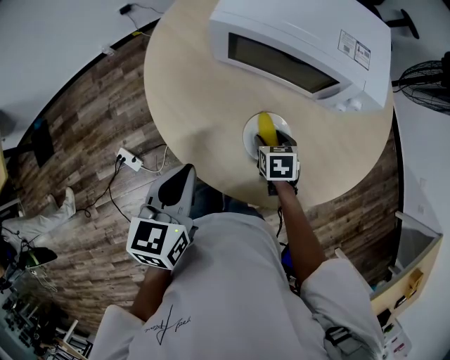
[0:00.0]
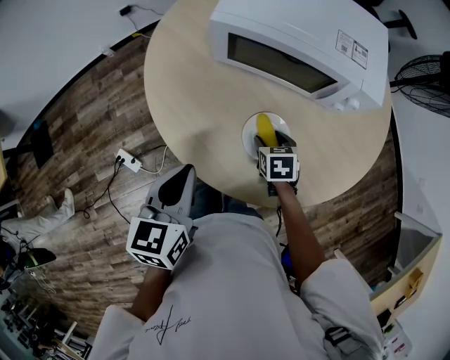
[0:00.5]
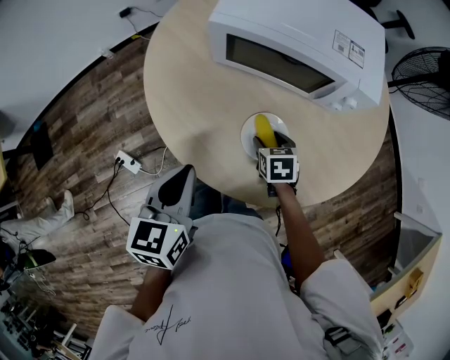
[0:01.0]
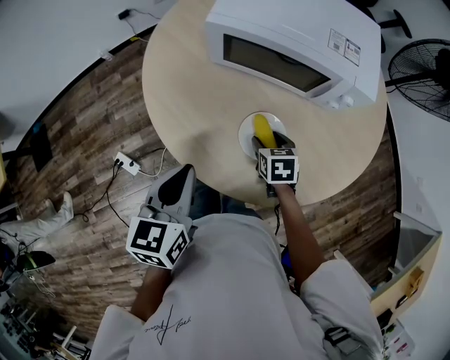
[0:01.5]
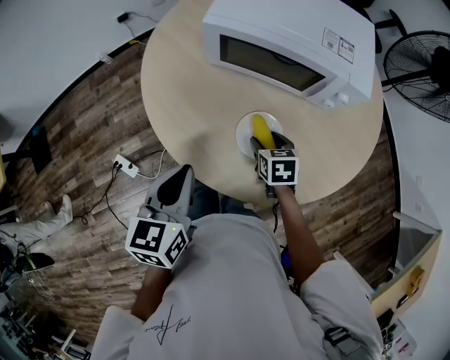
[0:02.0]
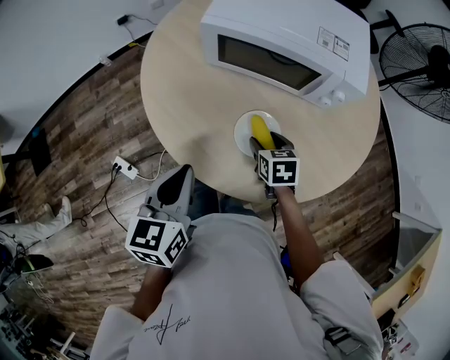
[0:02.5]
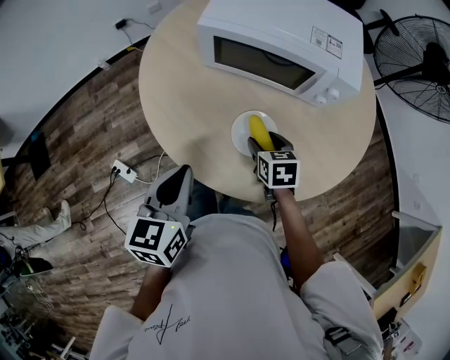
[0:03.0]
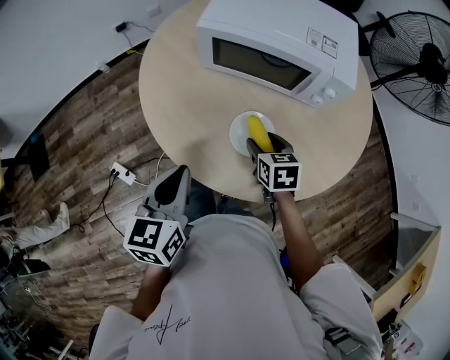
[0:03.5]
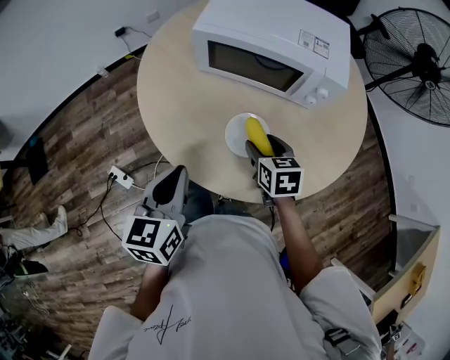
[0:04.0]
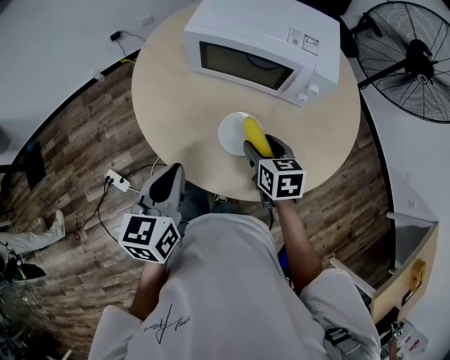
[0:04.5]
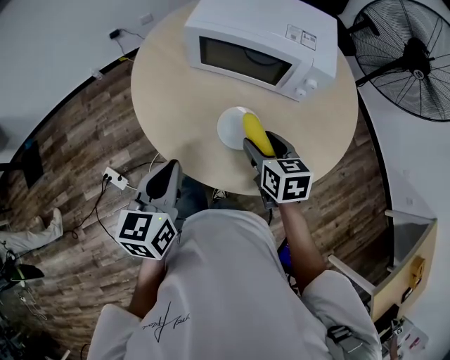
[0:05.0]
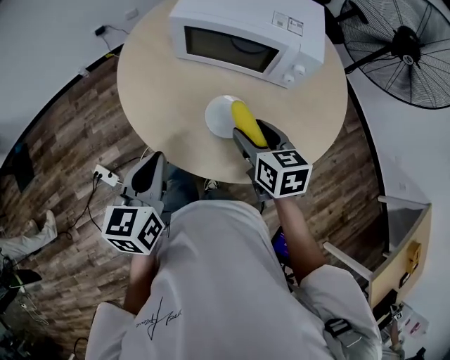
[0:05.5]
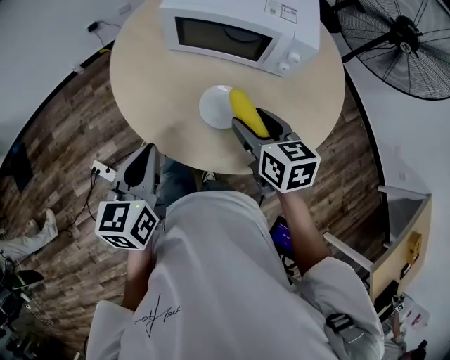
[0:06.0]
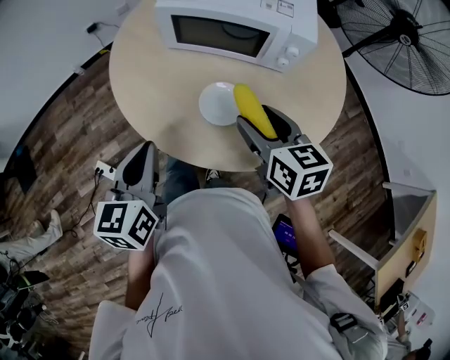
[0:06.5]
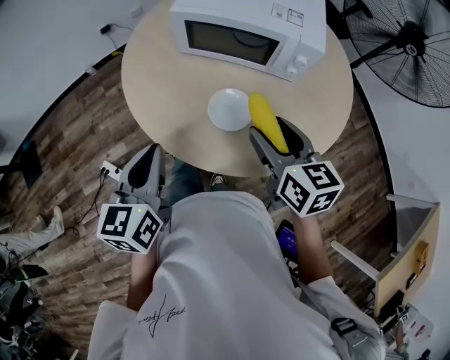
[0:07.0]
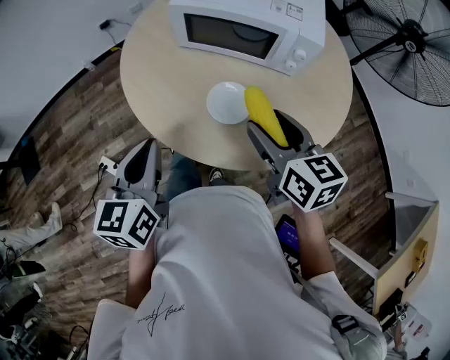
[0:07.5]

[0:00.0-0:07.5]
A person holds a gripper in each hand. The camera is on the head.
0:00.0 to 0:02.0: There are only small adjustments of the grippers.
0:02.0 to 0:04.0: The right gripper travels upward by approximately 10 cm.
0:04.0 to 0:05.5: The right gripper travels upward by about 10 cm.
0:05.5 to 0:07.5: The right gripper goes some 5 cm upward.

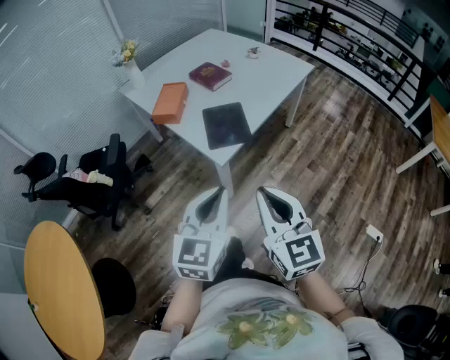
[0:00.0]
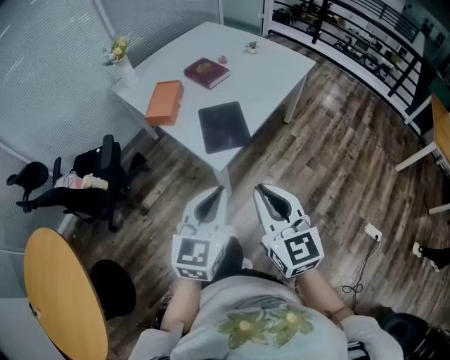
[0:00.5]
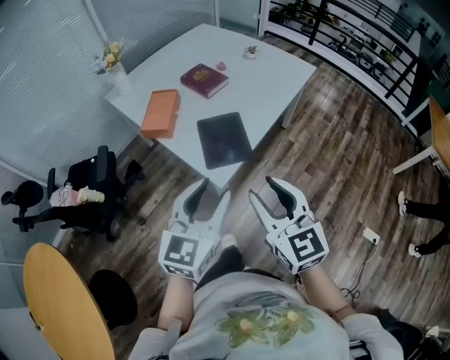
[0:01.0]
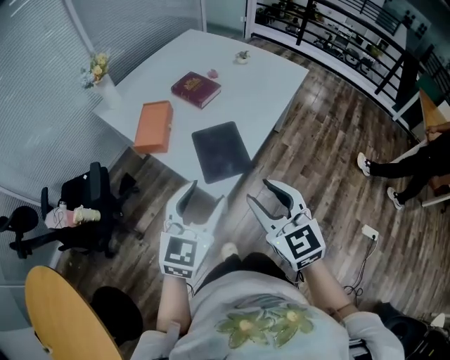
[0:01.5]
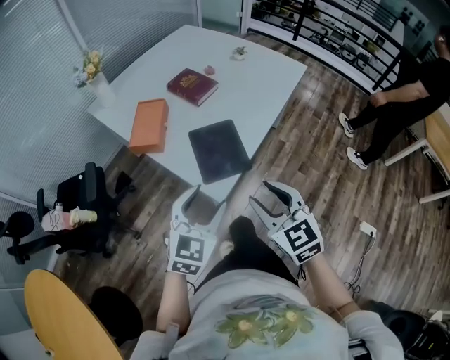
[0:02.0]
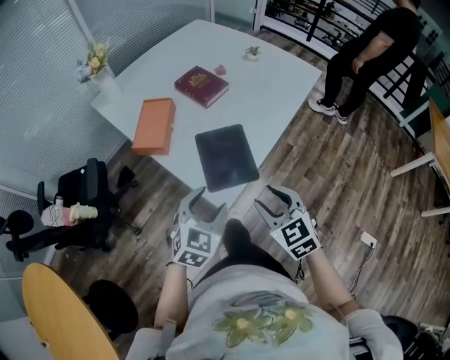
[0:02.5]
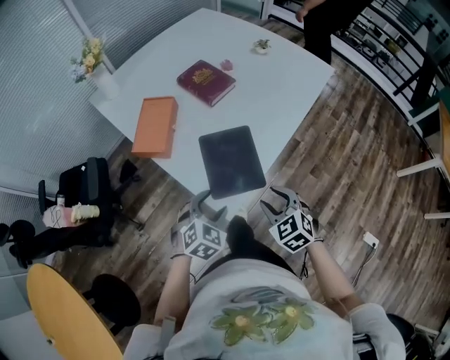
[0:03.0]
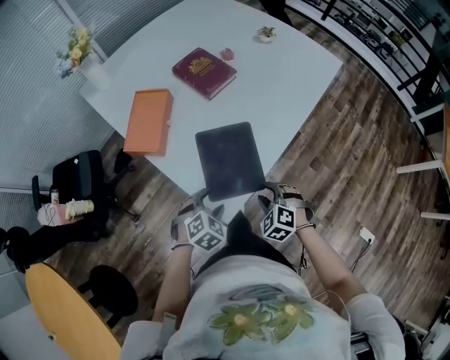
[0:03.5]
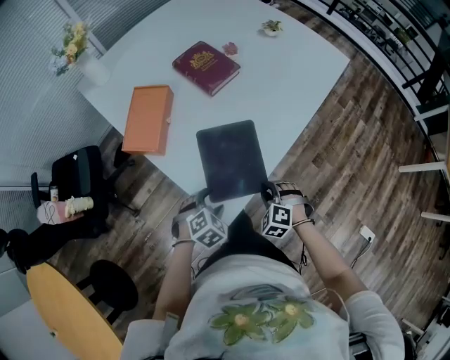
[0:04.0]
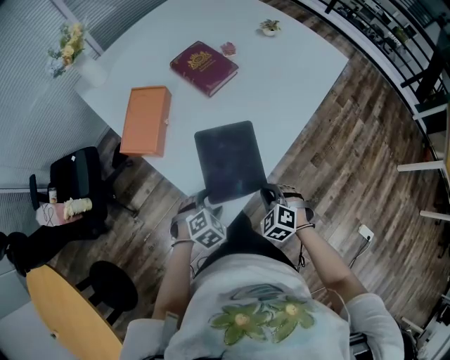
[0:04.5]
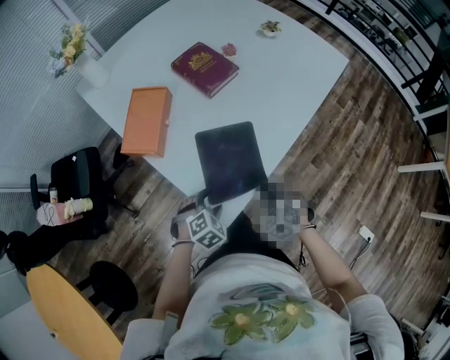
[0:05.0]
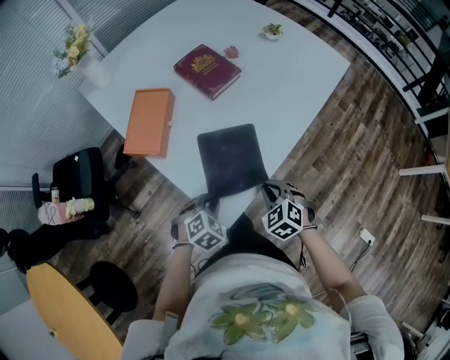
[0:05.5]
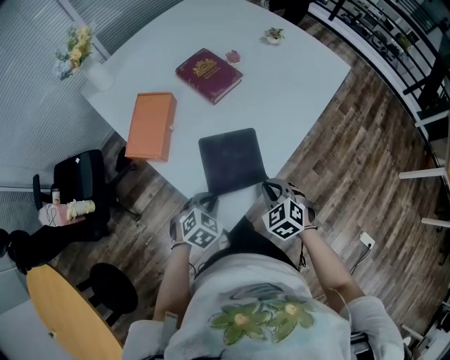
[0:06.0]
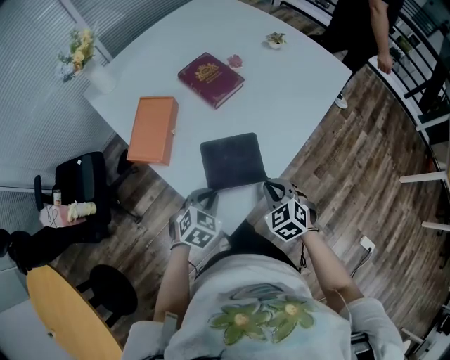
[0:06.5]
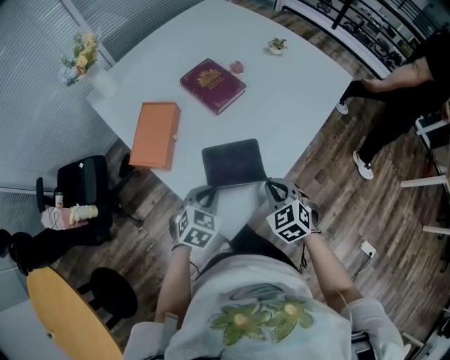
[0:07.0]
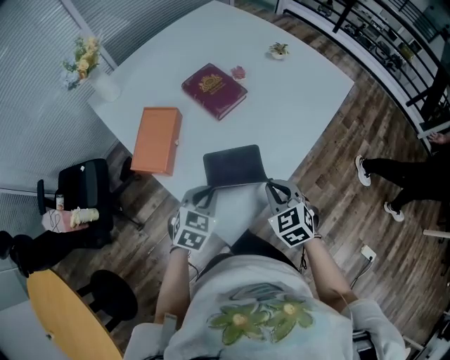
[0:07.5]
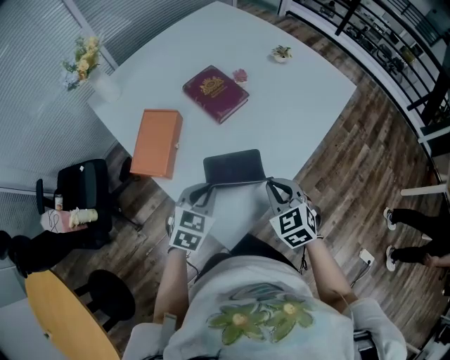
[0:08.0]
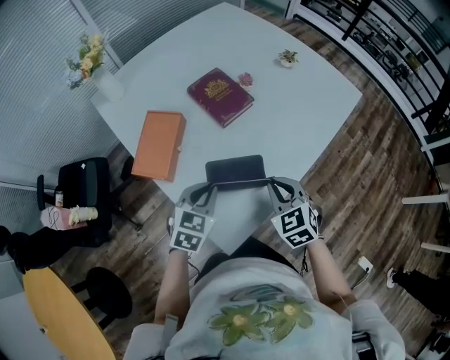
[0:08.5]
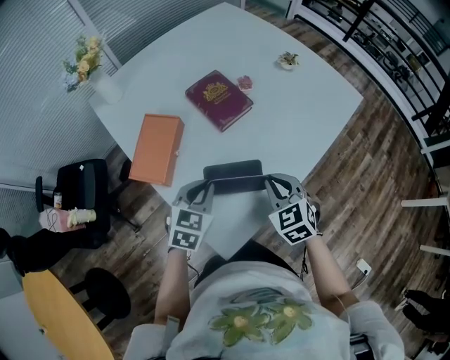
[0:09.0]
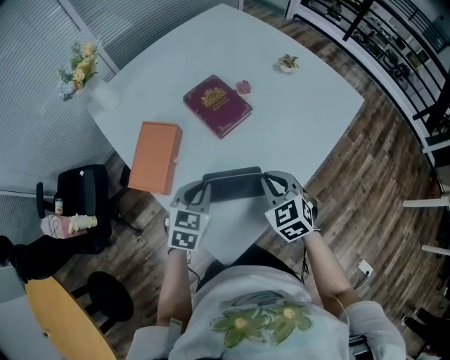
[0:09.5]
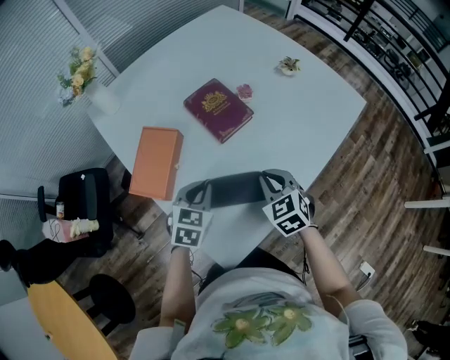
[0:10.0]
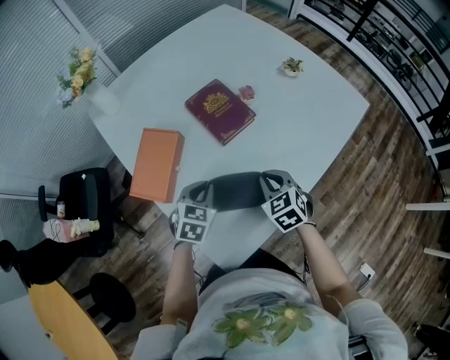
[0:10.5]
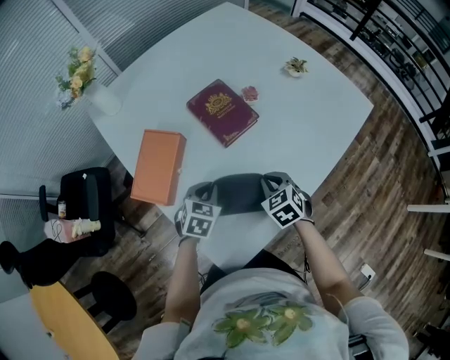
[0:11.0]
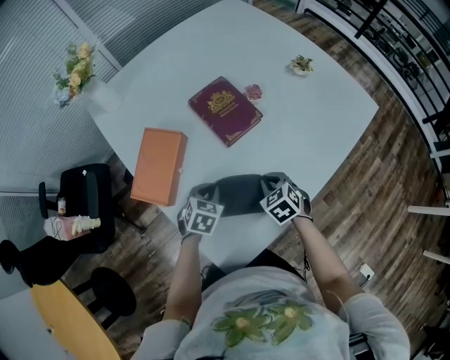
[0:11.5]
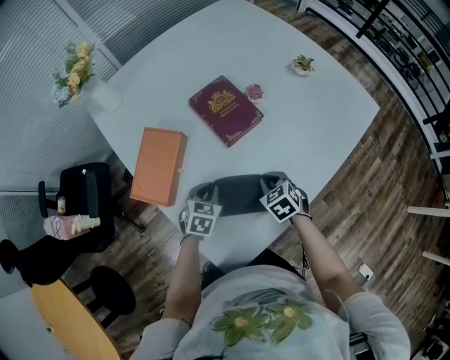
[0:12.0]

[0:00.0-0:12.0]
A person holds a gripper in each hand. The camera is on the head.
0:00.0 to 0:02.0: Both grippers move forward, some 20 cm. The left gripper opens its fingers; the right gripper opens up.
0:02.0 to 0:04.0: Both grippers move downward and forward, roughly 30 cm. The left gripper tips its fingers downward by approximately 40 degrees, while the right gripper points its fingers some 40 degrees further downward.
0:04.0 to 0:06.0: The left gripper closes. Meanwhile the right gripper heads upward, covering about 10 cm, rotates approximately 30 degrees, and closes up.
0:06.0 to 0:08.0: The grippers both shift upward and forward by about 10 cm. The left gripper swivels about 20 degrees.
0:08.0 to 0:10.0: The grippers both shift forward by some 10 cm.
0:10.0 to 0:12.0: Both grippers travel together downward, some 10 cm.

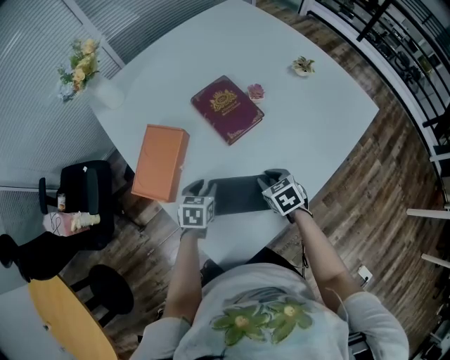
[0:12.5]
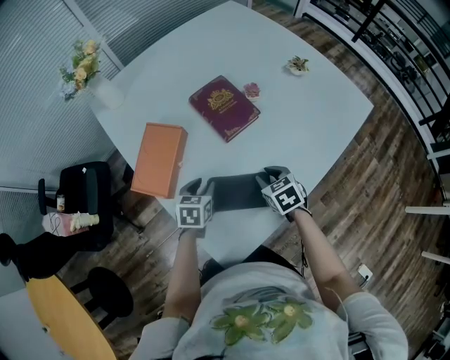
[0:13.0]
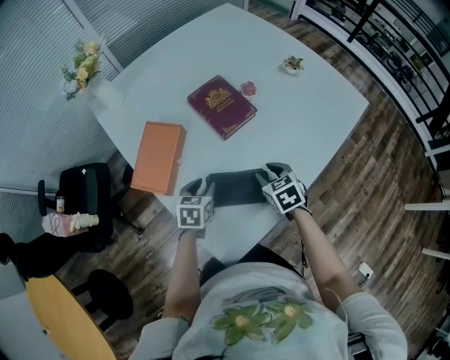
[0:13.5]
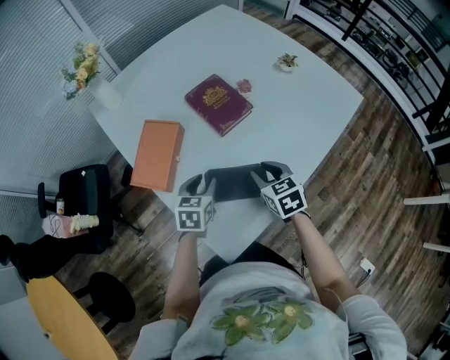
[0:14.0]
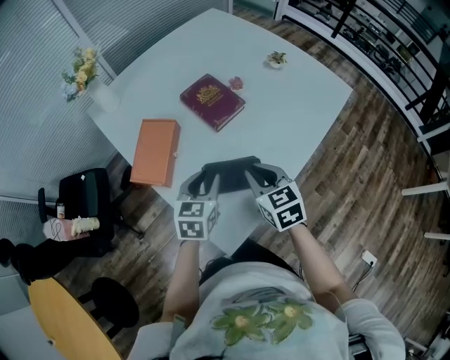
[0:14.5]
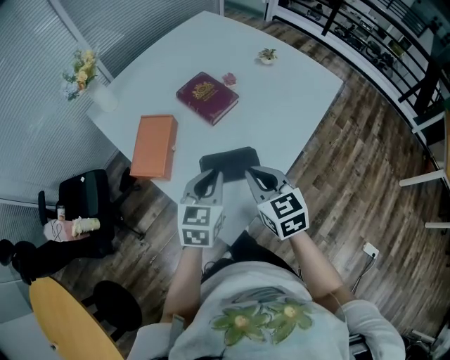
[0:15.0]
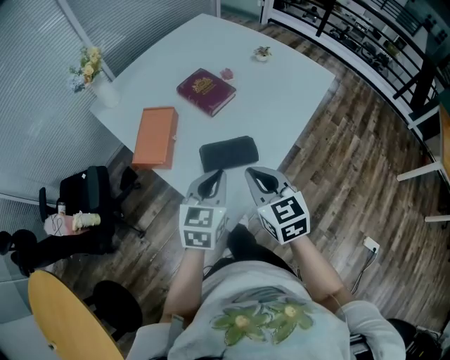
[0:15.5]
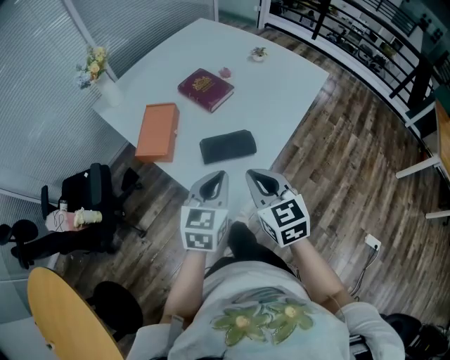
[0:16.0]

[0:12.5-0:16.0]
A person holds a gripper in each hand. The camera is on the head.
0:12.5 to 0:14.5: The two grippers go some 15 cm upward and backward. The right gripper swivels approximately 20 degrees.
0:14.5 to 0:16.0: Both grippers travel together backward and upward, about 20 cm. The left gripper closes.

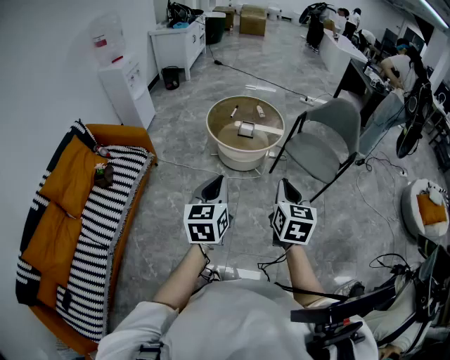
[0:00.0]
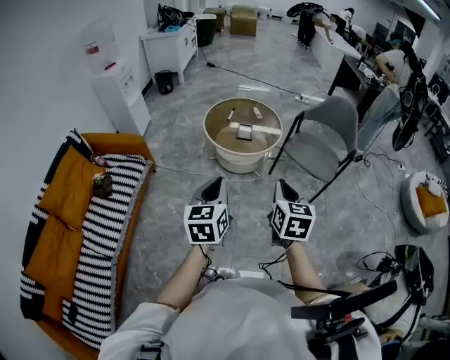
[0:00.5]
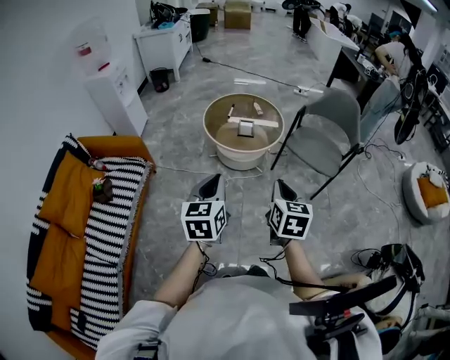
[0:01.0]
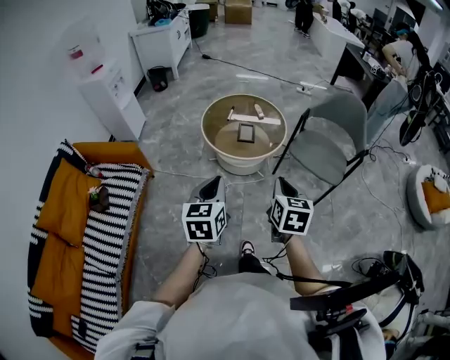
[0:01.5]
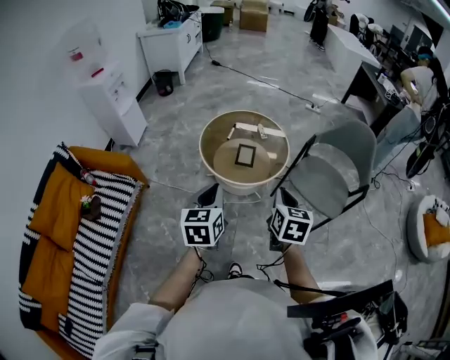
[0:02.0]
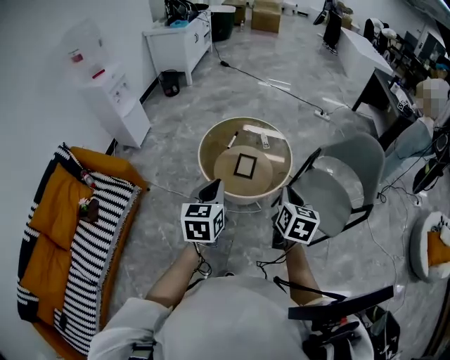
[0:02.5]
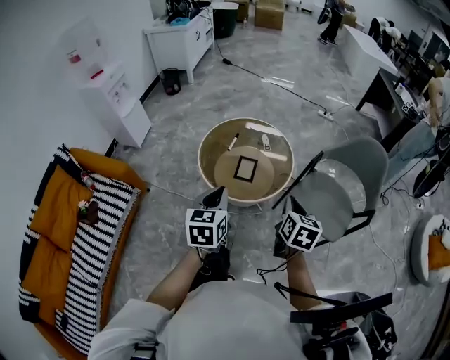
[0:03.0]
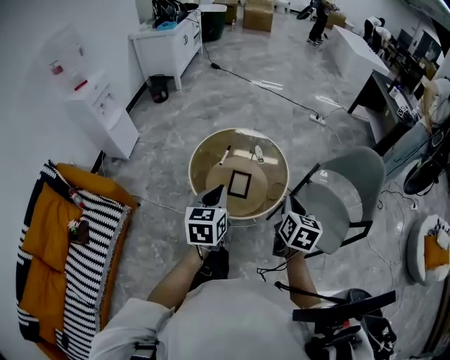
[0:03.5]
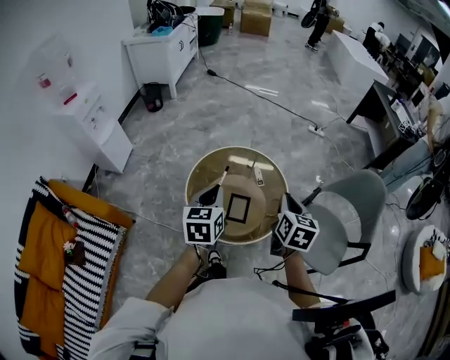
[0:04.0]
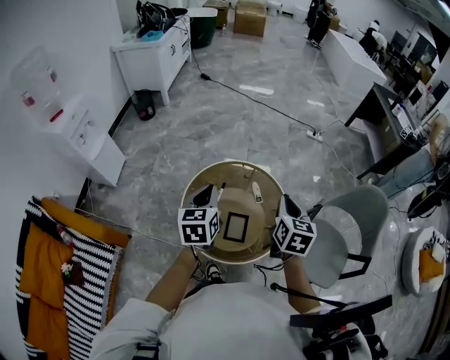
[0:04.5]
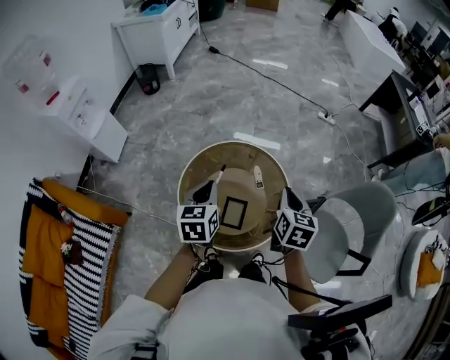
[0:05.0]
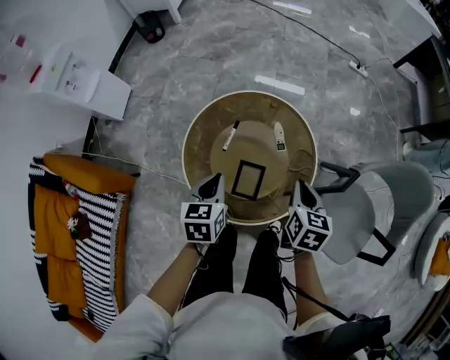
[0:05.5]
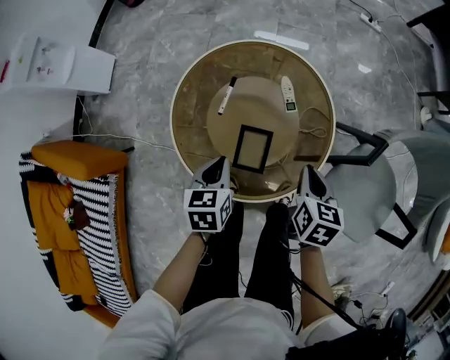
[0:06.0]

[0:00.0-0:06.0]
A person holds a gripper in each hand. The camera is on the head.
0:00.0 to 0:02.0: The grippers both shift forward by about 30 cm.
0:02.0 to 0:04.0: Both grippers travel together forward, approximately 35 cm.
0:04.0 to 0:06.0: Both grippers travel together downward, about 30 cm. The right gripper changes its angle by about 20 degrees. Meanwhile the left gripper swivels roughly 30 degrees.
